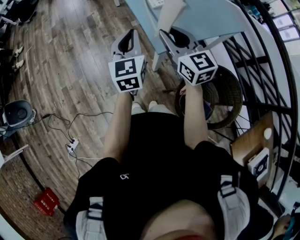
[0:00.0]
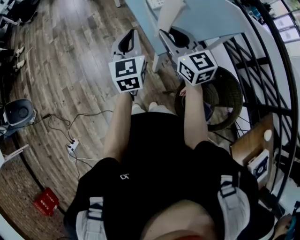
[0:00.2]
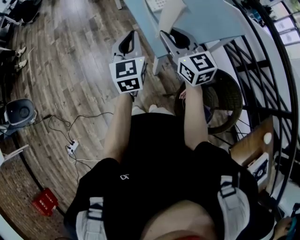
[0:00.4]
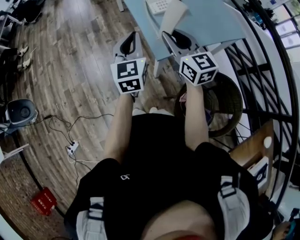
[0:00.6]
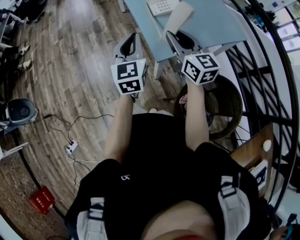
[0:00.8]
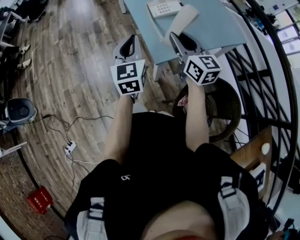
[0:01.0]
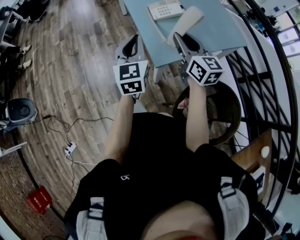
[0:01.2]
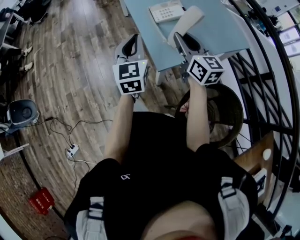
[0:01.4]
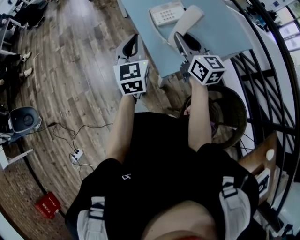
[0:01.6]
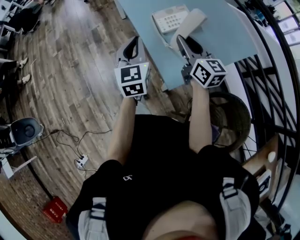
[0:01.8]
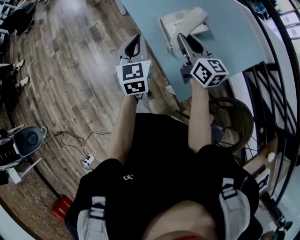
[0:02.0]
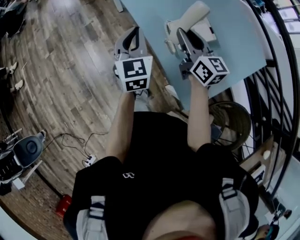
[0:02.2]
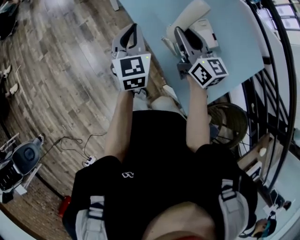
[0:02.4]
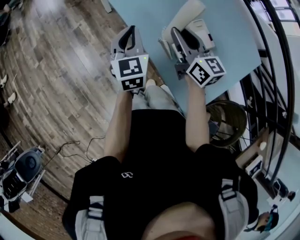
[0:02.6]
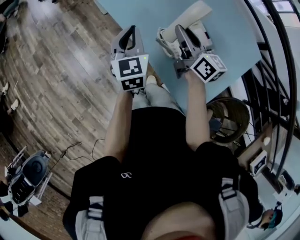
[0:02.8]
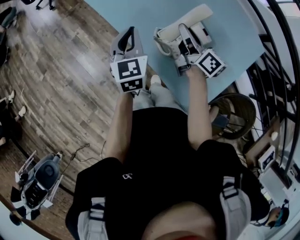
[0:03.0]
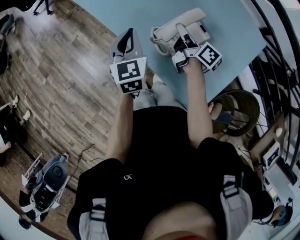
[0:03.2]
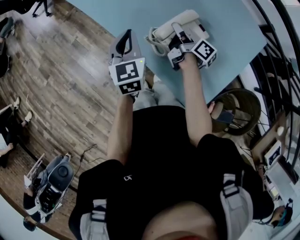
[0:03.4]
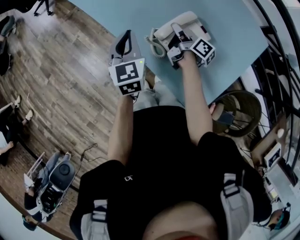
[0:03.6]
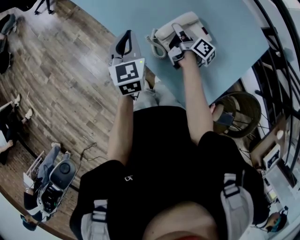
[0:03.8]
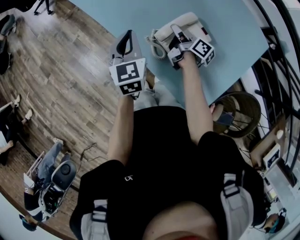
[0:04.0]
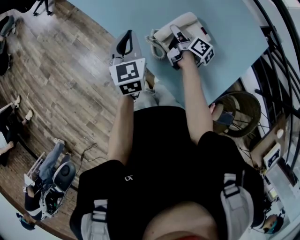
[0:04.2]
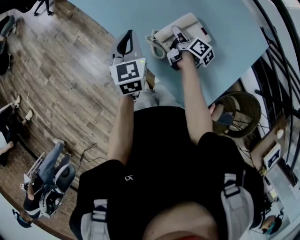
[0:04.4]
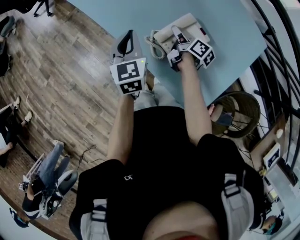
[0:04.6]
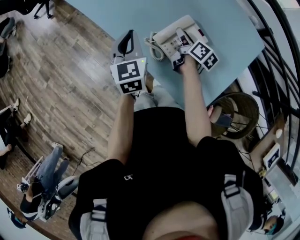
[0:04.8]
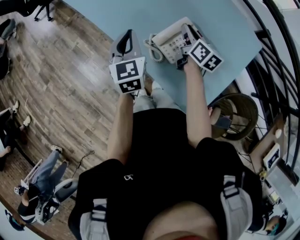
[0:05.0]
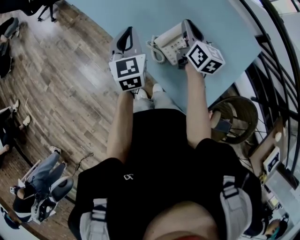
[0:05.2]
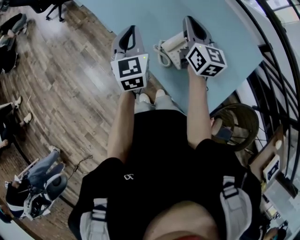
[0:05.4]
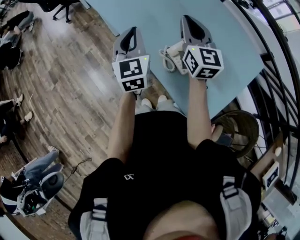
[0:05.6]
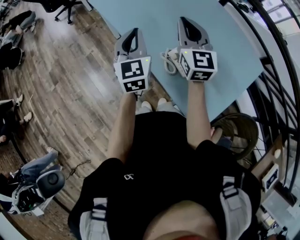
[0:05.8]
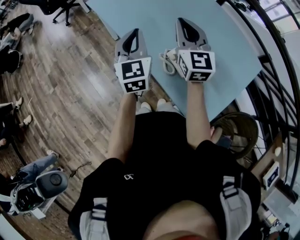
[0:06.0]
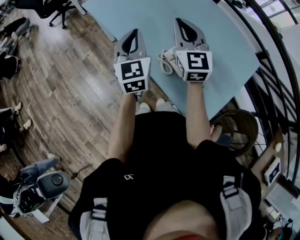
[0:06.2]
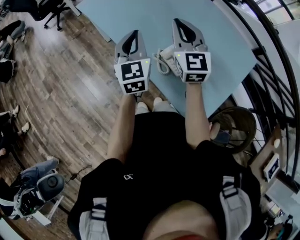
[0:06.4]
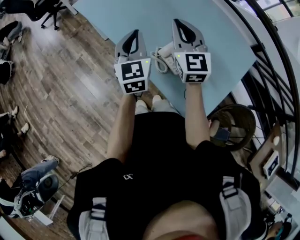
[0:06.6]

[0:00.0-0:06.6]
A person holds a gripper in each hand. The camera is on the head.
0:00.0 to 0:01.6: The left gripper is displaced forward by approximately 10 cm, while the right gripper is displaced forward and to the right by some 15 cm.
0:01.6 to 0:03.2: The left gripper heads forward, covering some 40 cm, and rotates some 20 degrees. Meanwhile the right gripper moves forward and downward, approximately 40 cm, and rotates around the line of its fingers by some 50 degrees, clockwise from behind.
0:03.2 to 0:05.0: The right gripper reaches some 10 cm downward, then returns, changes its angle by about 30 degrees, and opens, then closes again.
0:05.0 to 0:06.6: The left gripper is displaced upward by some 5 cm; the right gripper moves upward and to the left, roughly 20 cm, and twists about 50 degrees counterclockwise, seen from behind.

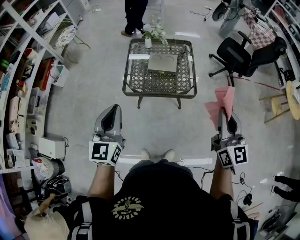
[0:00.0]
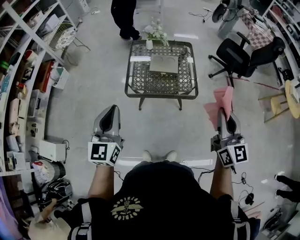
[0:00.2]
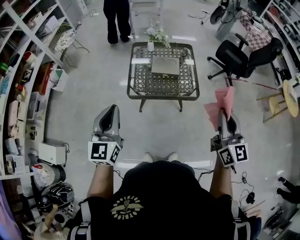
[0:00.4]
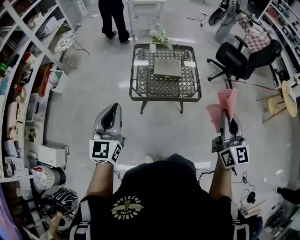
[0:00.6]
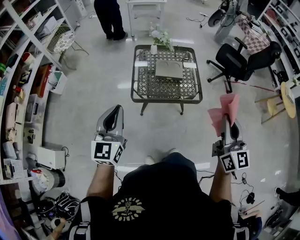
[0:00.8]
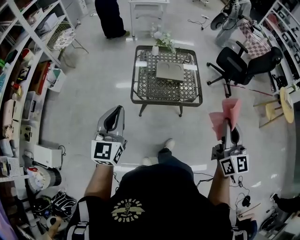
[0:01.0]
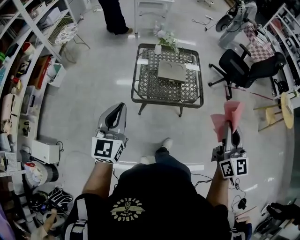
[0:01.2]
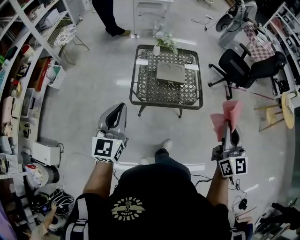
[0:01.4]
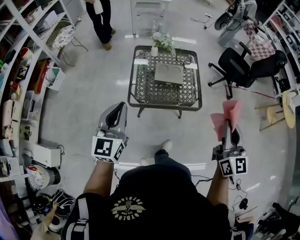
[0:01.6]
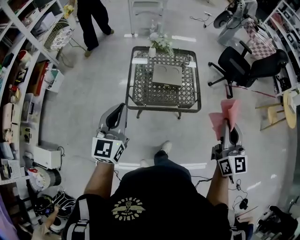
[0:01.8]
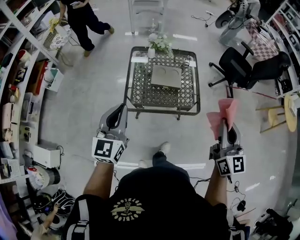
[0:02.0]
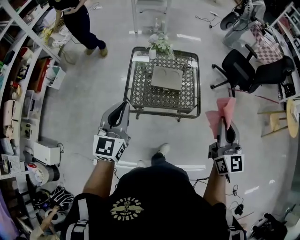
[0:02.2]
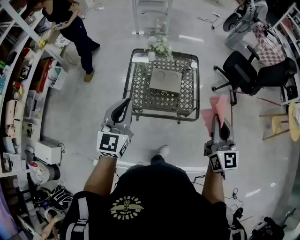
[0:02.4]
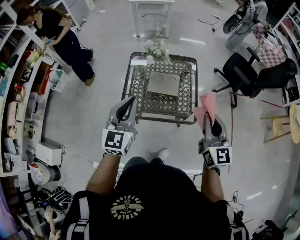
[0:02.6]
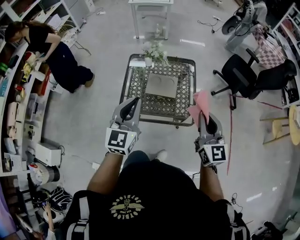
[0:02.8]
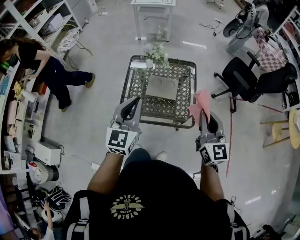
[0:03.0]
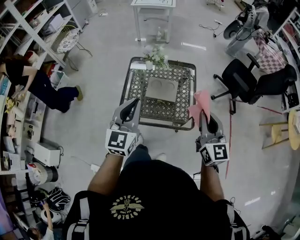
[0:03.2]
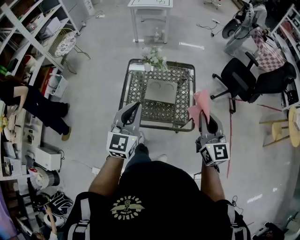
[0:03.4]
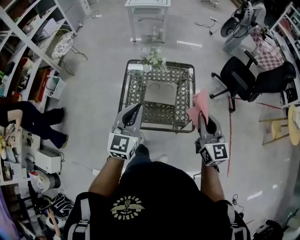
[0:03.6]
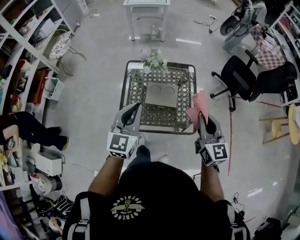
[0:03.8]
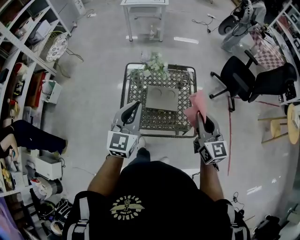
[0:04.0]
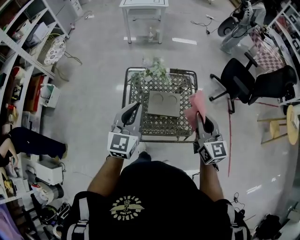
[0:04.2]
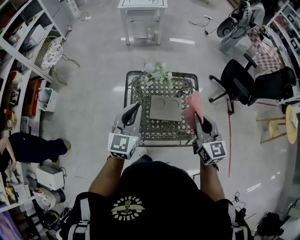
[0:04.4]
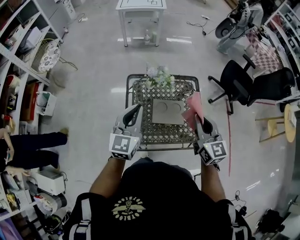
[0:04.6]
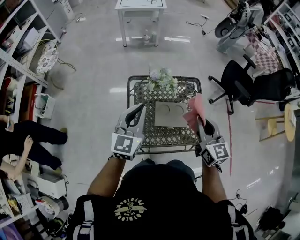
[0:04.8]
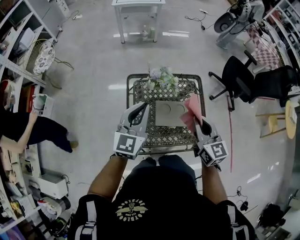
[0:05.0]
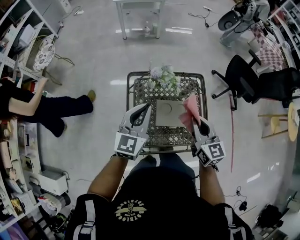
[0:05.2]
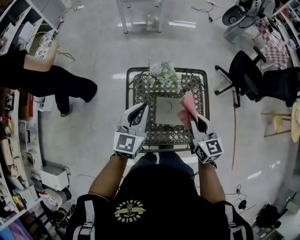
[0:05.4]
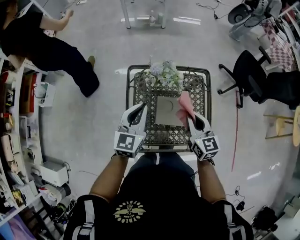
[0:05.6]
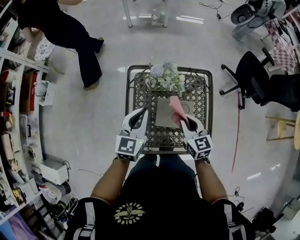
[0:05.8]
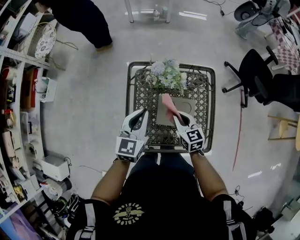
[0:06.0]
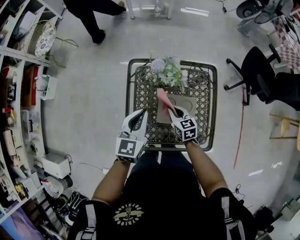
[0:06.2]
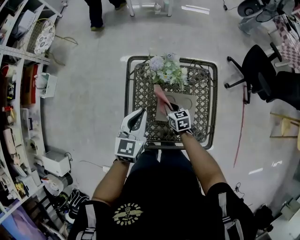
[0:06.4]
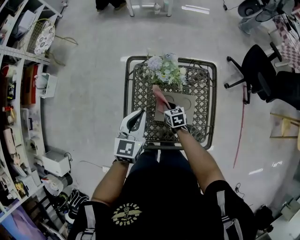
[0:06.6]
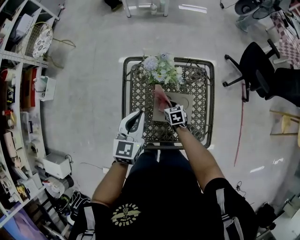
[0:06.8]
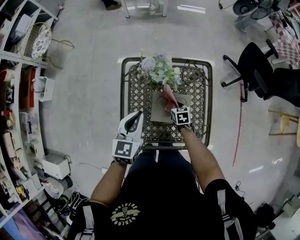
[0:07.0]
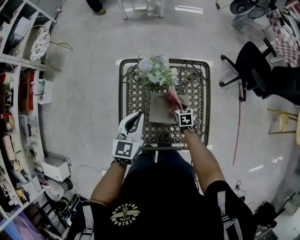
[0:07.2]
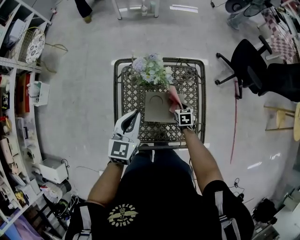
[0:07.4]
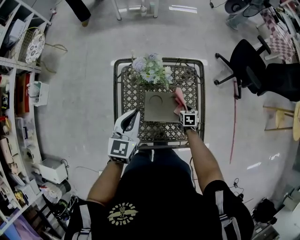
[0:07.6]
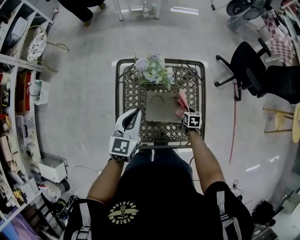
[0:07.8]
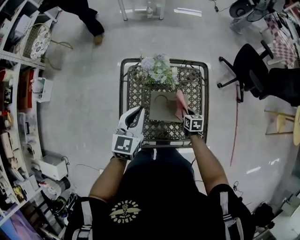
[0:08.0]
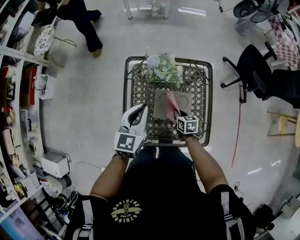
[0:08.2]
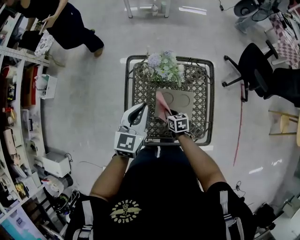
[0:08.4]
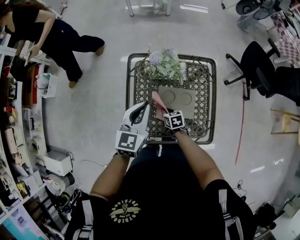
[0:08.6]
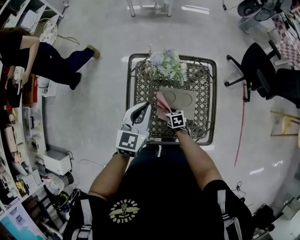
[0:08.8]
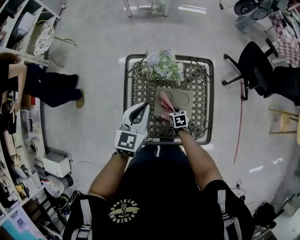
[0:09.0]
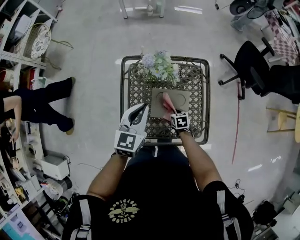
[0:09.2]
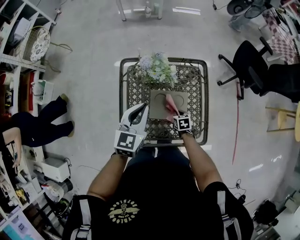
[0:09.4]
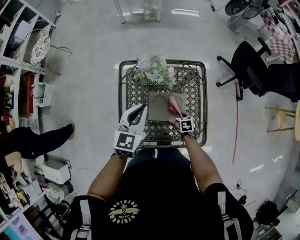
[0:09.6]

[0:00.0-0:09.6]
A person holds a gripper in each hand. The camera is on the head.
0:00.0 to 0:01.6: The right gripper heads to the left, covering about 10 cm. Meanwhile the left gripper moves to the left and forward, some 15 cm.
0:01.6 to 0:03.2: The left gripper travels to the right and forward by some 25 cm. Meanwhile the right gripper goes roughly 20 cm forward.
0:03.2 to 0:04.8: Both grippers move forward and to the left, approximately 30 cm.
0:04.8 to 0:06.4: The left gripper goes some 20 cm downward, and changes its angle by roughly 20 degrees. The right gripper heads downward, covering approximately 40 cm, and points its fingers approximately 30 degrees further downward.
0:06.4 to 0:08.0: The right gripper moves to the right, roughly 15 cm.
0:08.0 to 0:09.6: The right gripper reaches about 15 cm to the left, then returns.

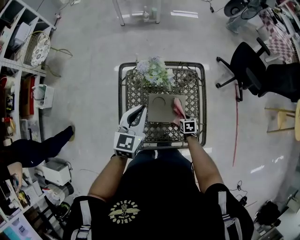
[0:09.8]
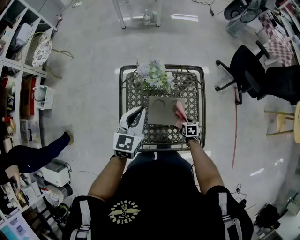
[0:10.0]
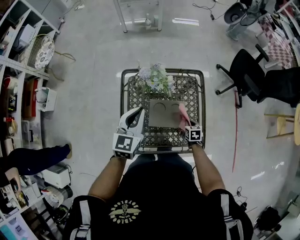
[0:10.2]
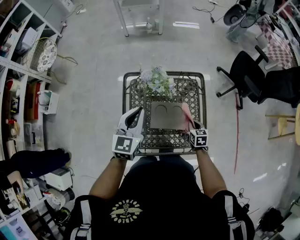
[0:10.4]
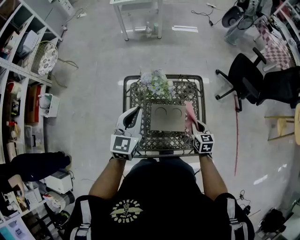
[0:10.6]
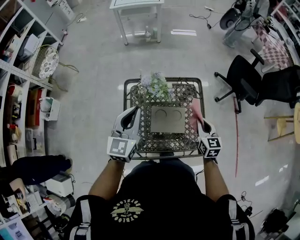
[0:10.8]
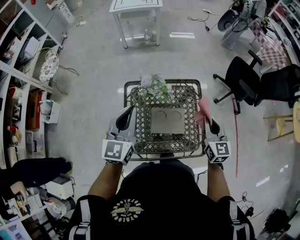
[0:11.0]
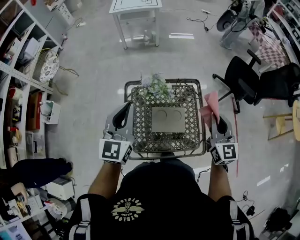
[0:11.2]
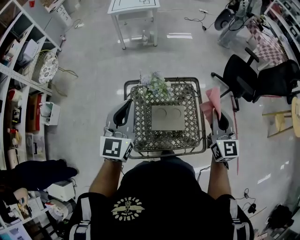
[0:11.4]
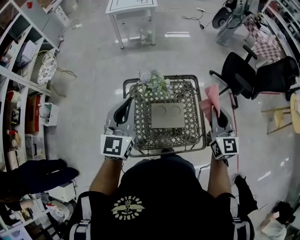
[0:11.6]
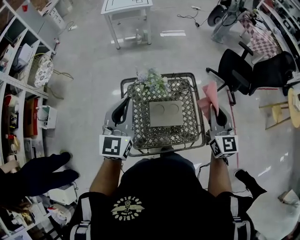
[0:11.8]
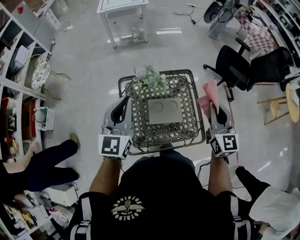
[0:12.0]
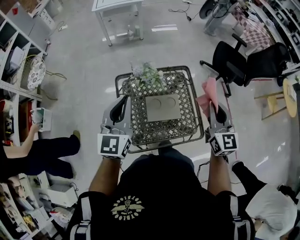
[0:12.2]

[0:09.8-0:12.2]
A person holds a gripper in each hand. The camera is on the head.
0:09.8 to 0:11.0: The right gripper is displaced upward by roughly 40 cm, and tips its fingers upward by roughly 50 degrees, while the left gripper is displaced upward by some 15 cm.
0:11.0 to 0:12.2: The right gripper goes approximately 10 cm upward.

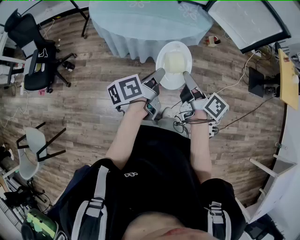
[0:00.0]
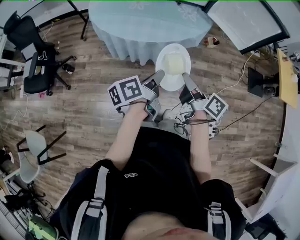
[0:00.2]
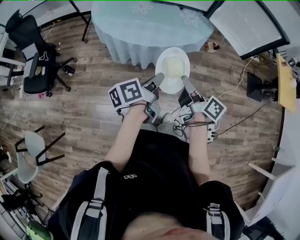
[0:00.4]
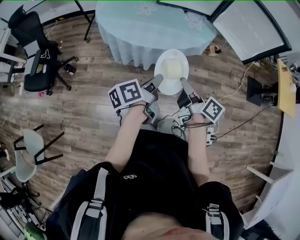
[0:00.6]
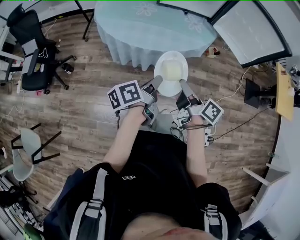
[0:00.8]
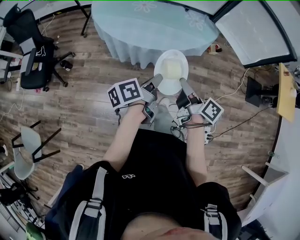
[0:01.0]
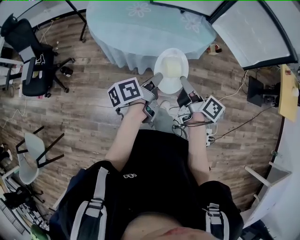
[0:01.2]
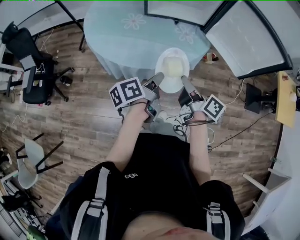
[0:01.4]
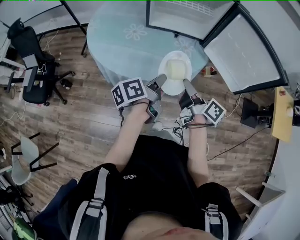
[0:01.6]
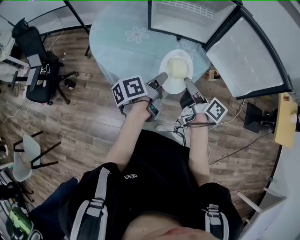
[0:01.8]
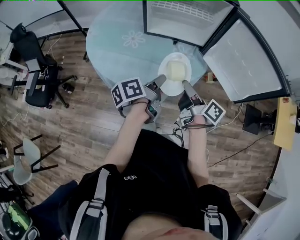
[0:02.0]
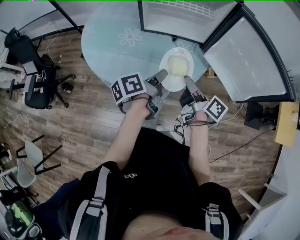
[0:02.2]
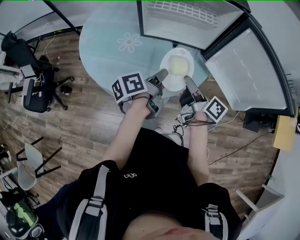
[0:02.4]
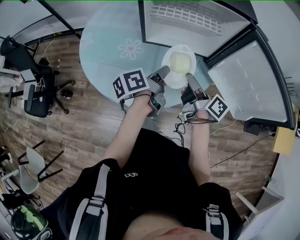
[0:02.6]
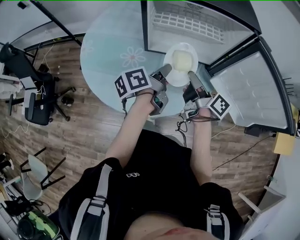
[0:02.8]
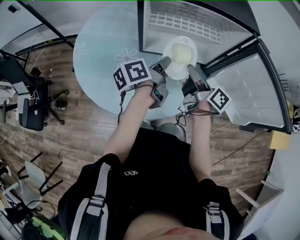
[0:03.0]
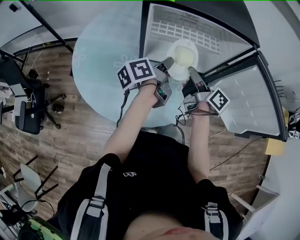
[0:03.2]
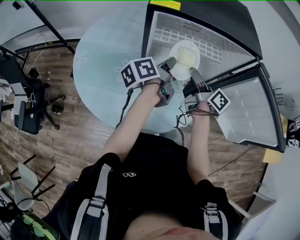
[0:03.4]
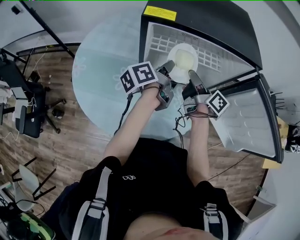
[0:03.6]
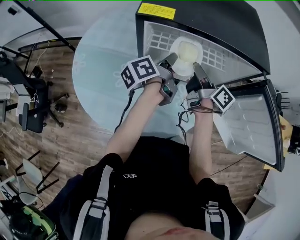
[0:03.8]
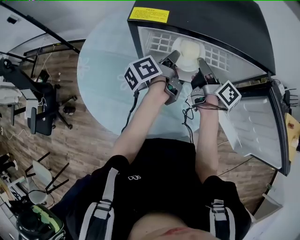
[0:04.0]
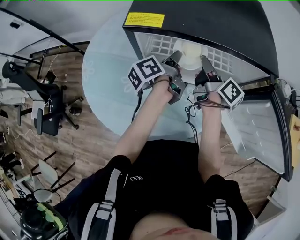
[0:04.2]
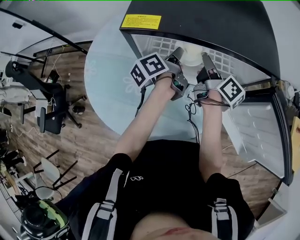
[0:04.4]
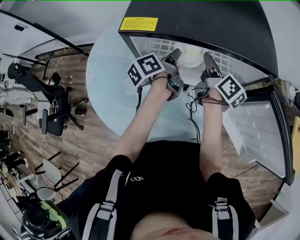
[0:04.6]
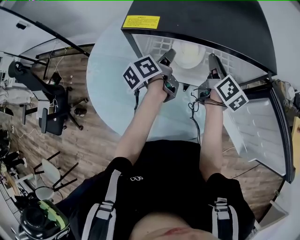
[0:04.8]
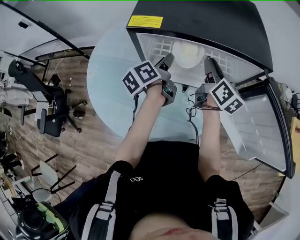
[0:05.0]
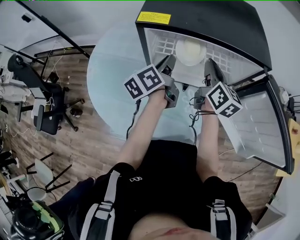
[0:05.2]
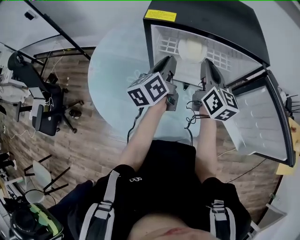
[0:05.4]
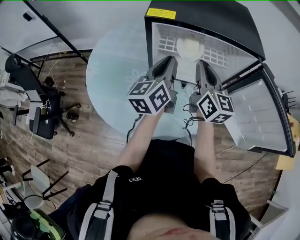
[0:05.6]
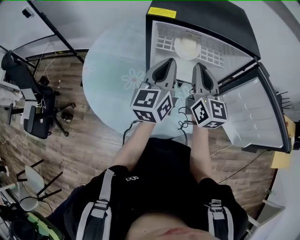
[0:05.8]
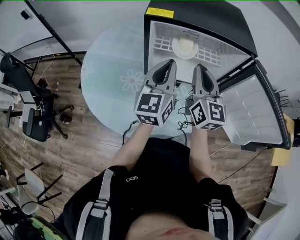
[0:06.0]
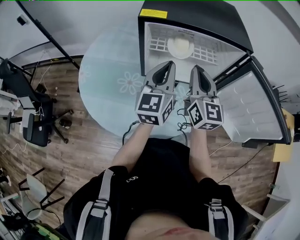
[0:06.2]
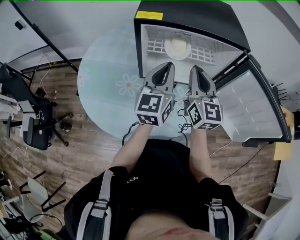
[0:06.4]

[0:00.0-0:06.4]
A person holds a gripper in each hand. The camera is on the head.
0:00.0 to 0:01.6: The two grippers go approximately 20 cm forward.
0:01.6 to 0:03.2: The two grippers go some 30 cm forward.
0:03.2 to 0:04.8: The two grippers go some 15 cm forward. The left gripper opens. The right gripper turns by roughly 30 degrees.
0:04.8 to 0:06.4: The right gripper travels backward, upward and to the left by roughly 20 cm, rotates around the line of its fingers by some 40 degrees, counterclockwise from behind, and closes its fingers. The left gripper heads backward and upward, covering some 20 cm, rotates around the line of its fingers by some 60 degrees, clockwise from behind, and closes up.
